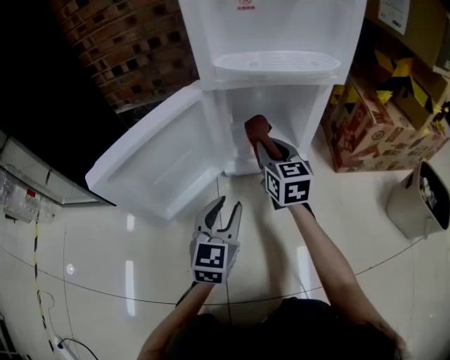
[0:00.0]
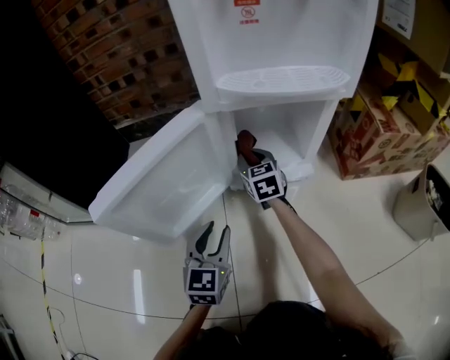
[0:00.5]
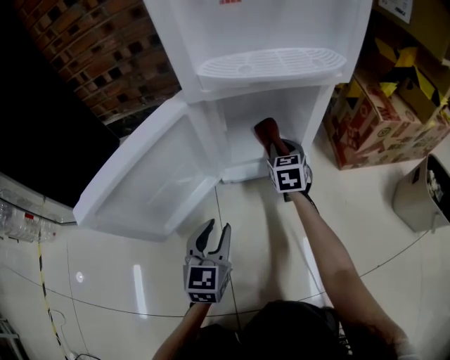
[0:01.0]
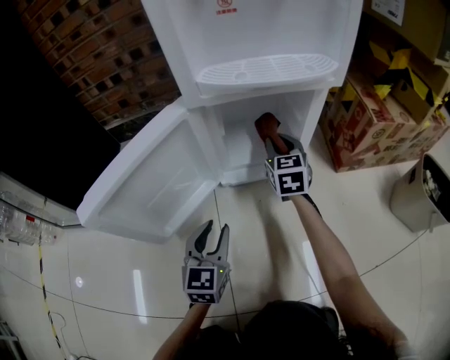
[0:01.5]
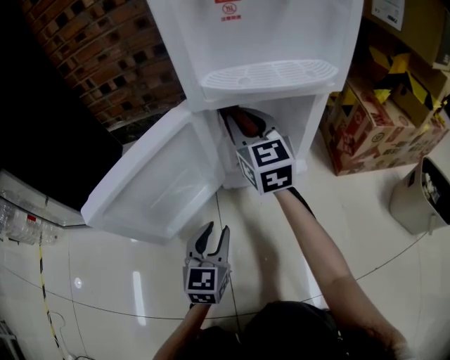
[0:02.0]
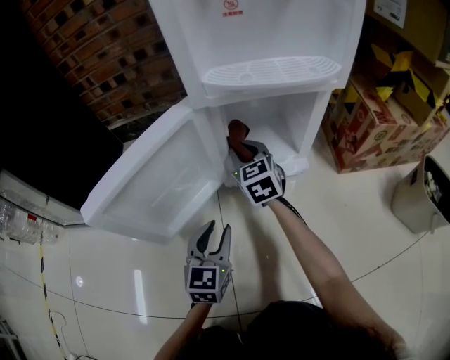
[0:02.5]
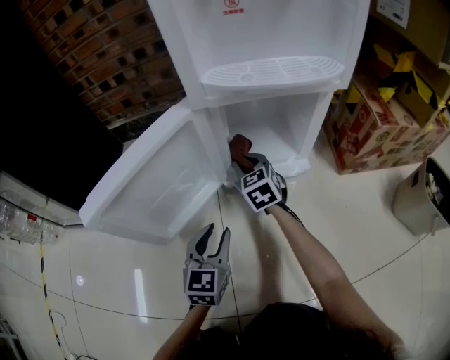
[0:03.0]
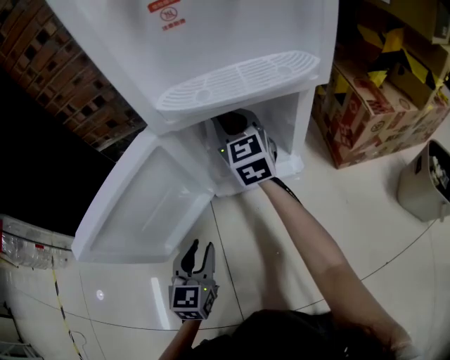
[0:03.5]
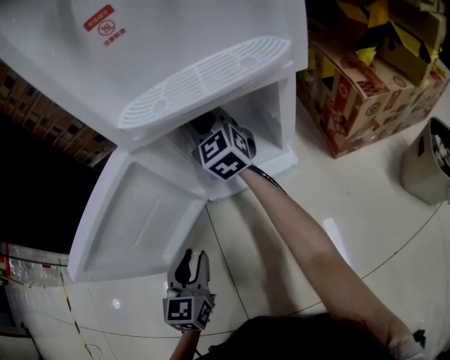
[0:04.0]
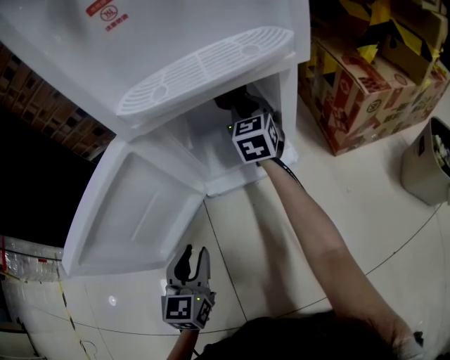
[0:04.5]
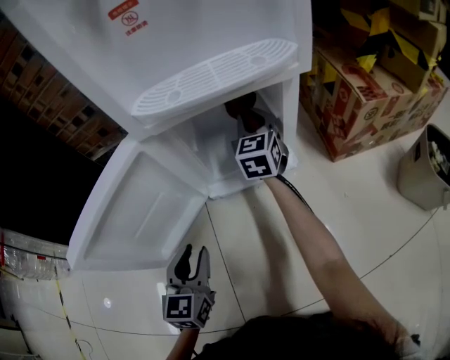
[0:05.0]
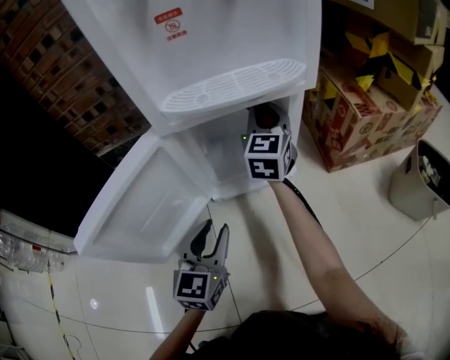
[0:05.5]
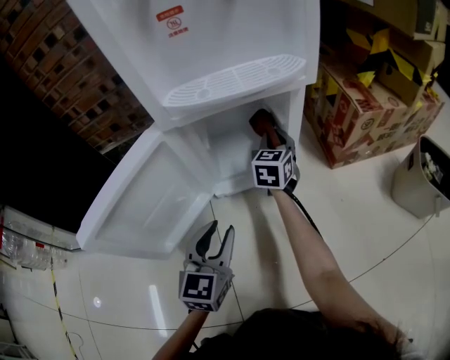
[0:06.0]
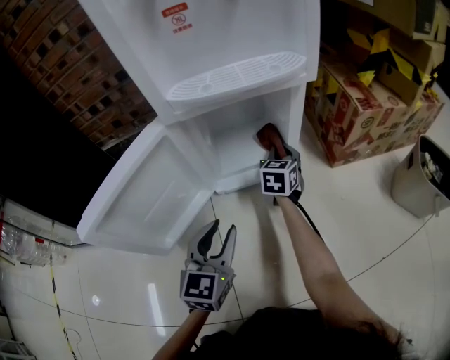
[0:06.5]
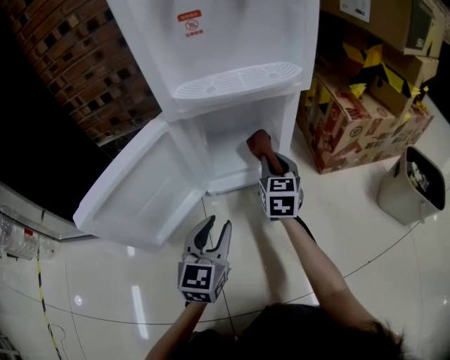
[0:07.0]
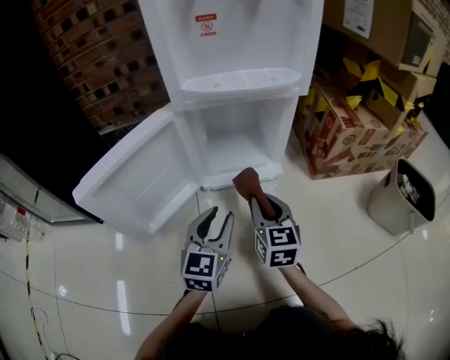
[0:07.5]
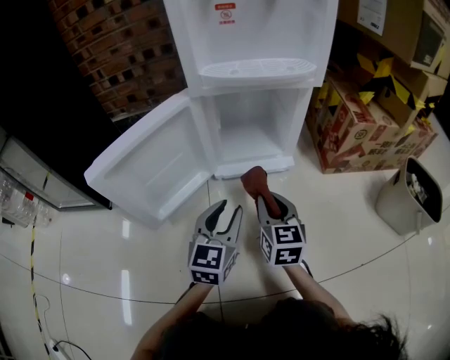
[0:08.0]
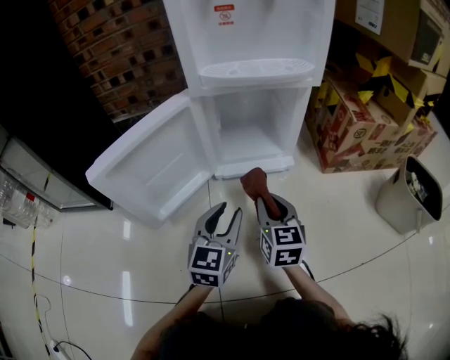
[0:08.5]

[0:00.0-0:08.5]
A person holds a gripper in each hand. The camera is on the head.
0:00.0 to 0:02.0: The left gripper ends up about 5 cm from where it was; the right gripper heads upward, covering about 10 cm.
0:02.0 to 0:04.0: The right gripper shifts about 10 cm forward, and travels downward and back again, roughly 20 cm each way.
0:04.0 to 0:06.5: The left gripper is displaced to the right and upward by roughly 10 cm. Meanwhile the right gripper shifts roughly 25 cm to the right and downward, and rotates roughly 50 degrees.
0:06.5 to 0:08.5: The right gripper shifts approximately 20 cm backward, and turns by approximately 30 degrees.

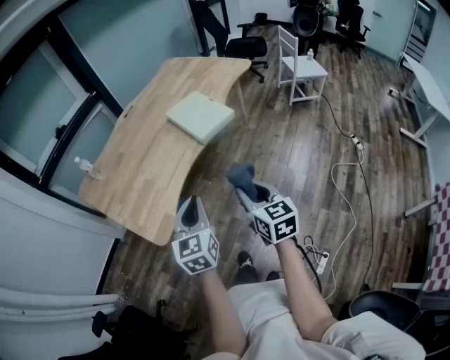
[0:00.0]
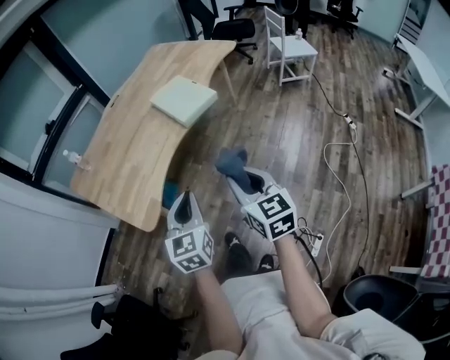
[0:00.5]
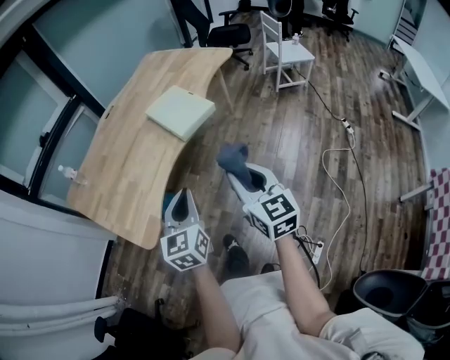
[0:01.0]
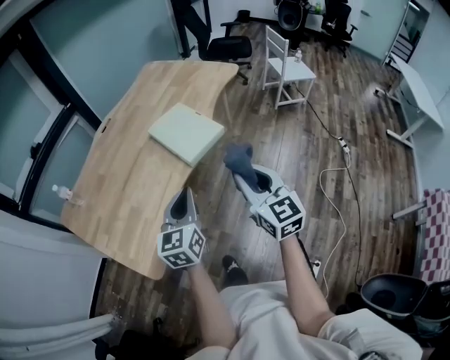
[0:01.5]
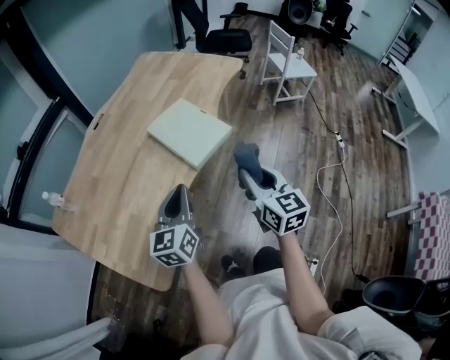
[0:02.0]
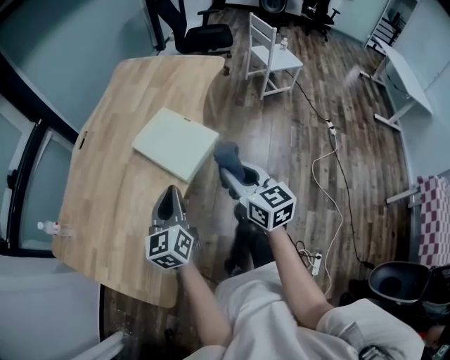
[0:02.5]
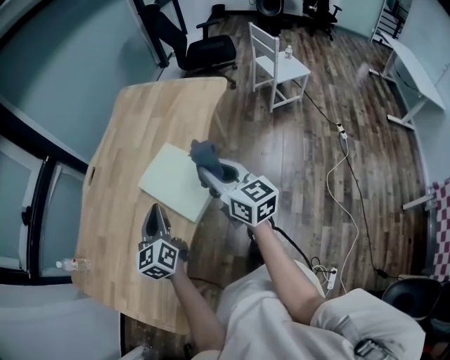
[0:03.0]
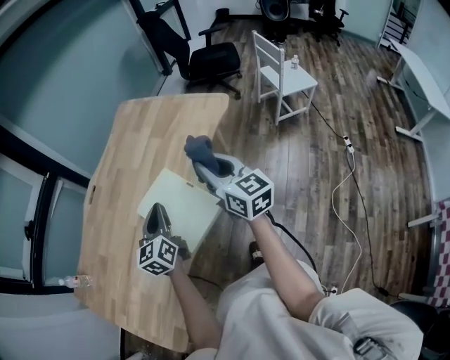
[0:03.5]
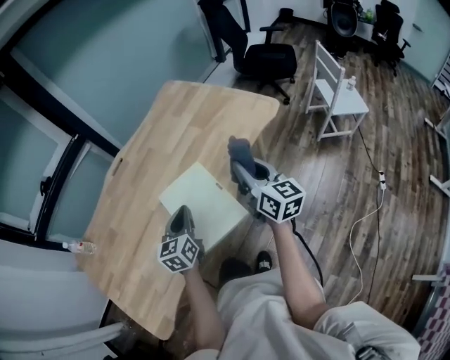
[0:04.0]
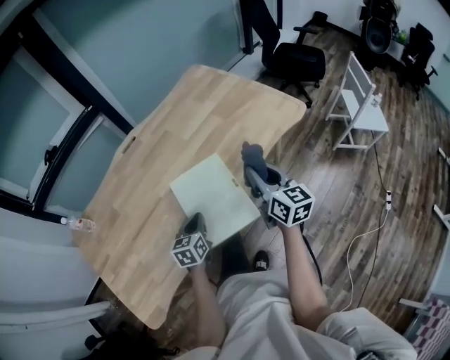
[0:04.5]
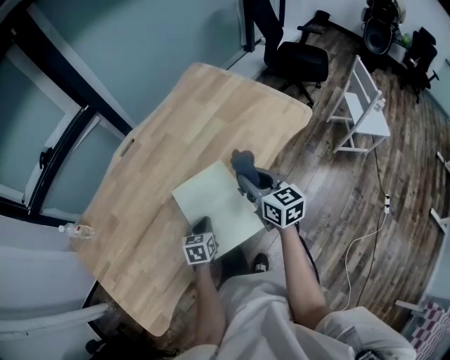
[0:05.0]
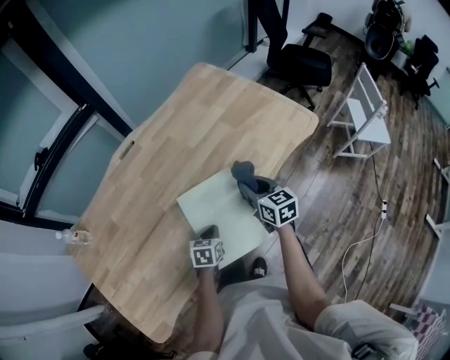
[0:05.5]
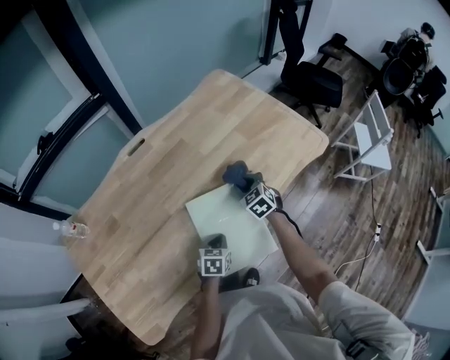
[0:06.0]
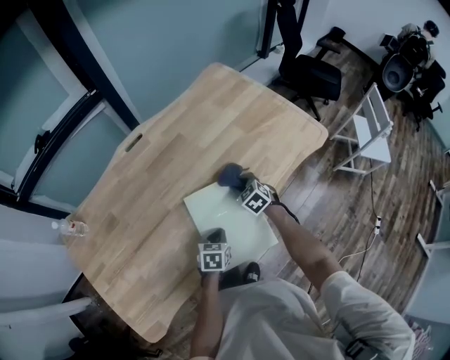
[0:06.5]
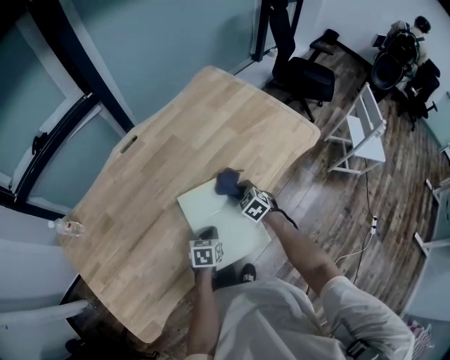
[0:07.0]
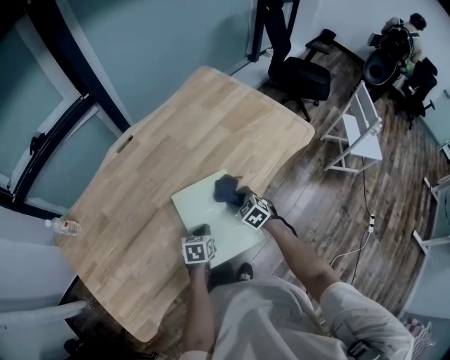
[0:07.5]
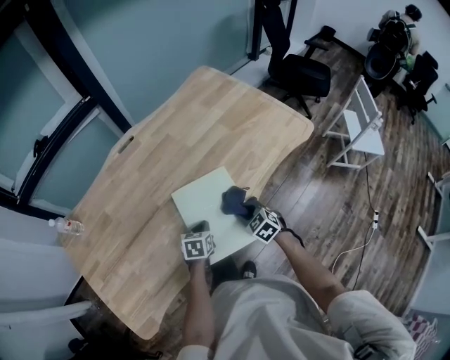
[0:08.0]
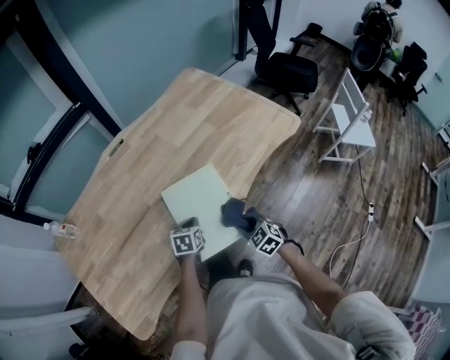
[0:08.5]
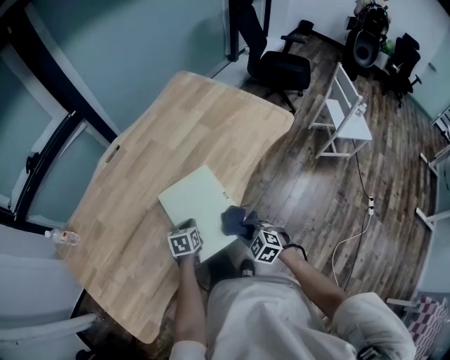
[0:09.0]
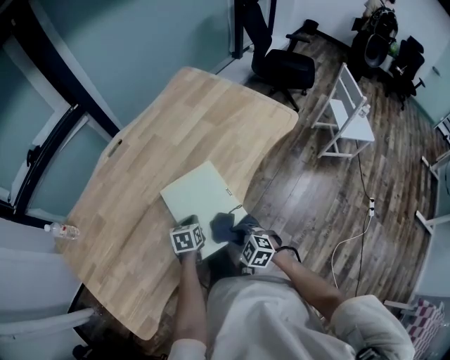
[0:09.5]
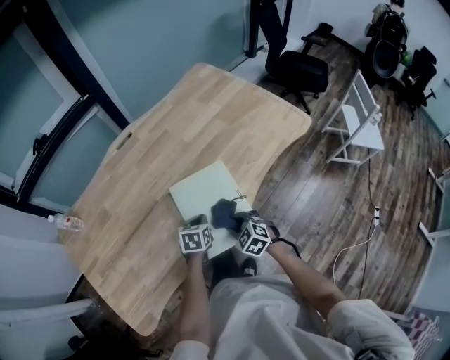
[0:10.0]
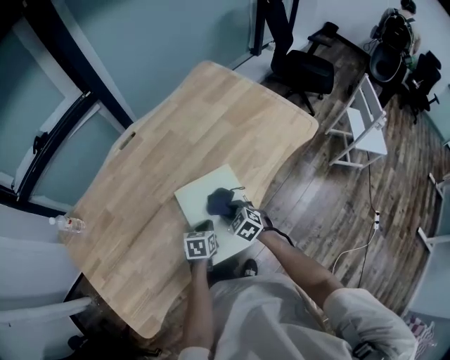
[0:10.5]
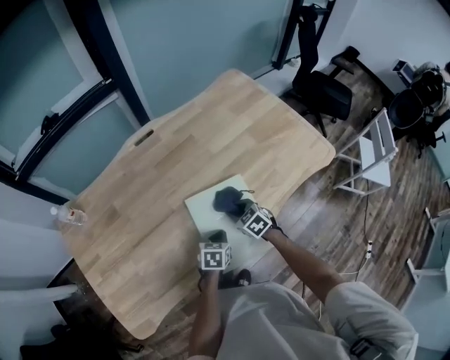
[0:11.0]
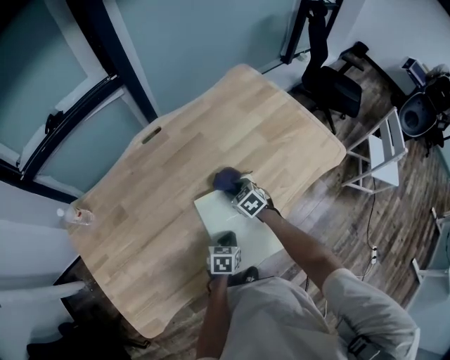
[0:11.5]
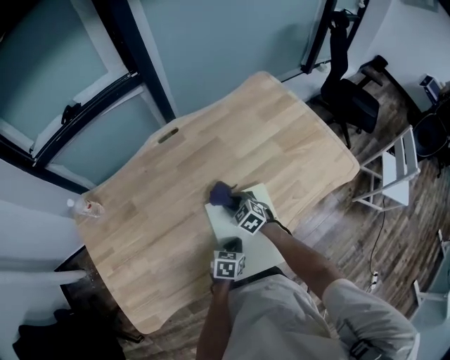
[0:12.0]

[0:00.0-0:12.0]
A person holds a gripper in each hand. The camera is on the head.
0:00.0 to 0:02.0: Both grippers move forward, about 25 cm.
0:02.0 to 0:04.0: The two grippers go approximately 35 cm forward. The right gripper rotates approximately 20 degrees.
0:04.0 to 0:06.0: The left gripper heads downward, covering about 20 cm, and tips its fingers downward by about 30 degrees, while the right gripper moves downward, forward and to the left, roughly 35 cm, and points its fingers approximately 40 degrees further downward.
0:06.0 to 0:08.0: The right gripper goes about 15 cm backward.
0:08.0 to 0:10.0: The right gripper heads backward and to the left, covering some 10 cm.
0:10.0 to 0:12.0: The right gripper heads forward and to the left, covering about 25 cm.

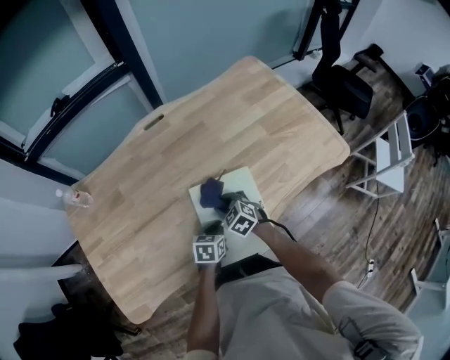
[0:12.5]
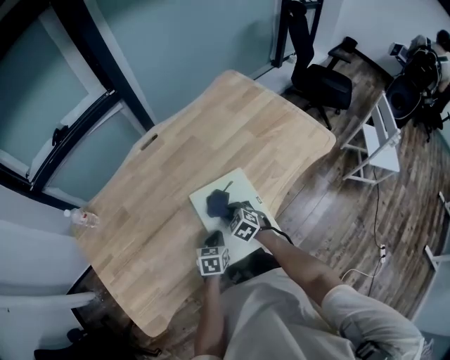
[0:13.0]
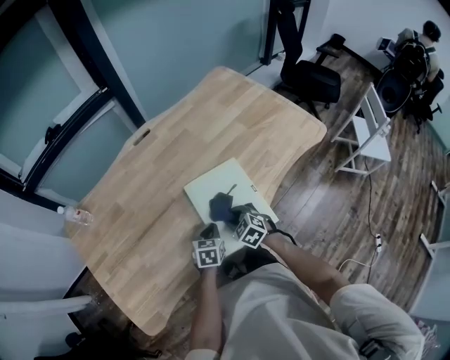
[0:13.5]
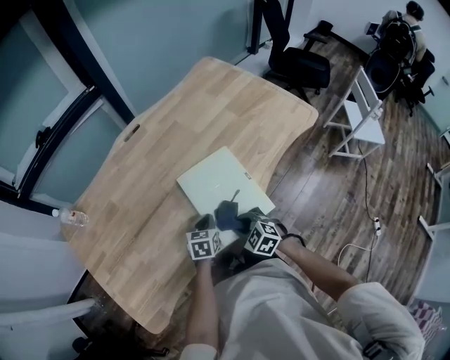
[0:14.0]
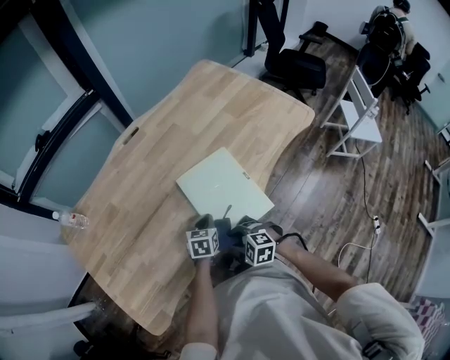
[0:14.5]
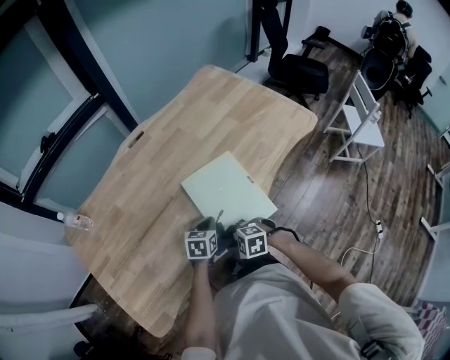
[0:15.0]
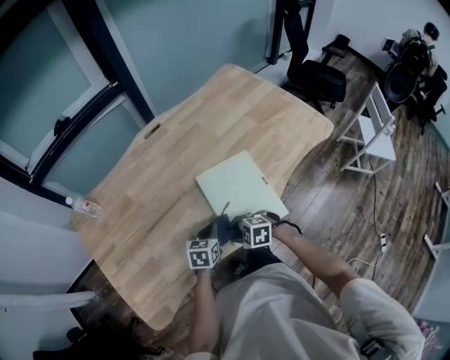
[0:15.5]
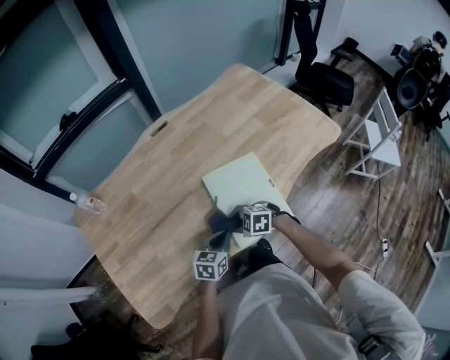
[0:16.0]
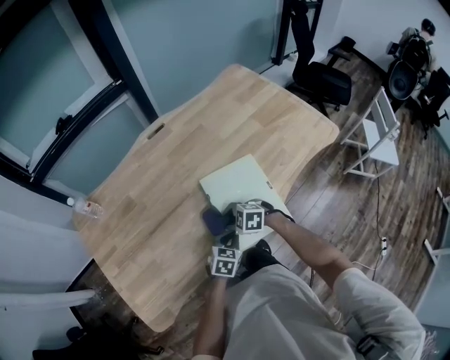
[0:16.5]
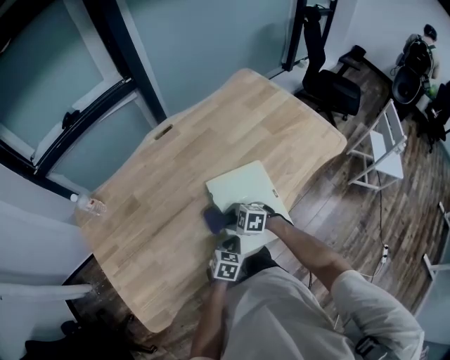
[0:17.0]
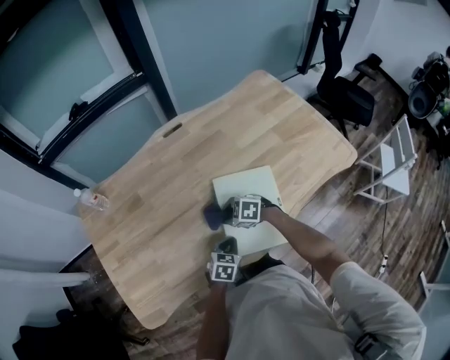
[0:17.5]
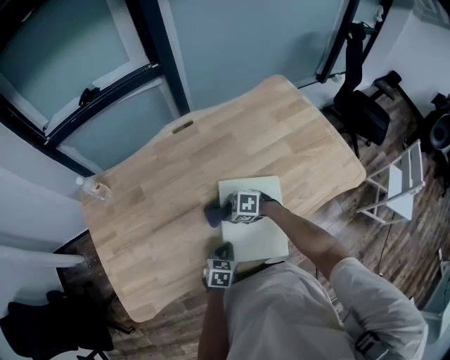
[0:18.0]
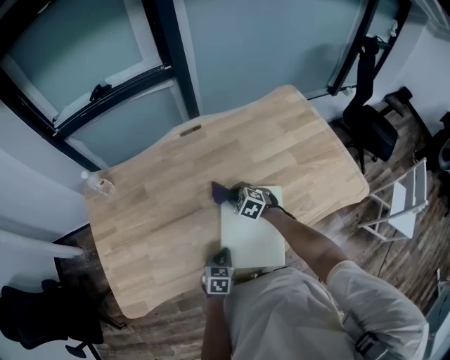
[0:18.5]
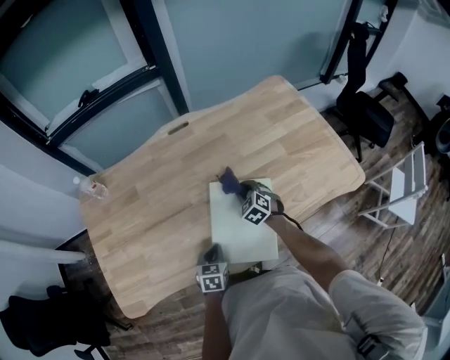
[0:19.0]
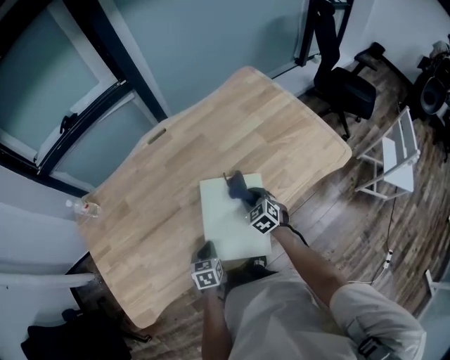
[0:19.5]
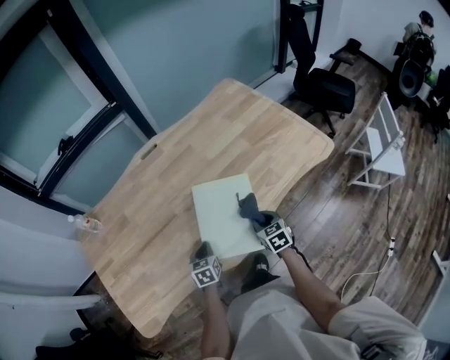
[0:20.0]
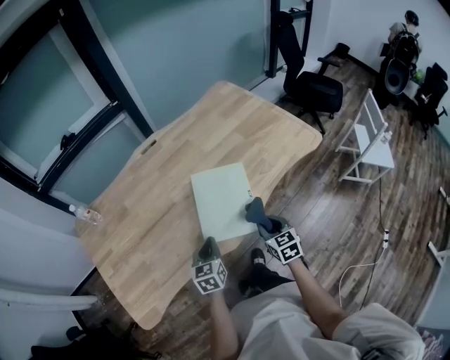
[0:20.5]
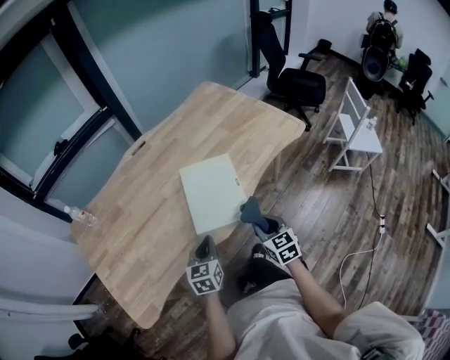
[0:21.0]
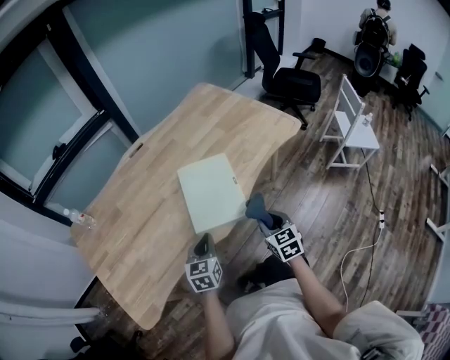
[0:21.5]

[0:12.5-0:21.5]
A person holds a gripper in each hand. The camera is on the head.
0:12.5 to 0:14.5: The right gripper heads backward, covering roughly 25 cm. Meanwhile the left gripper travels backward by approximately 5 cm.
0:14.5 to 0:17.0: The right gripper goes roughly 15 cm forward.
0:17.0 to 0:19.5: The right gripper shifts by roughly 25 cm, and changes its angle by roughly 40 degrees; the left gripper shifts by about 5 cm, and changes its angle by approximately 30 degrees.
0:19.5 to 0:21.5: The left gripper shifts roughly 20 cm backward and upward, and rotates roughly 30 degrees. Meanwhile the right gripper is displaced backward by roughly 30 cm, and changes its angle by about 30 degrees.
